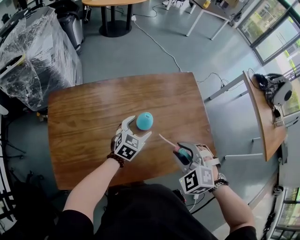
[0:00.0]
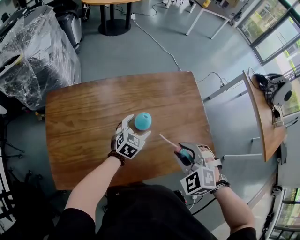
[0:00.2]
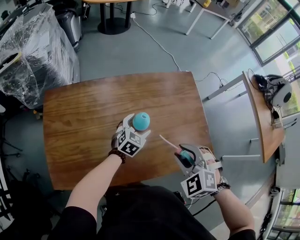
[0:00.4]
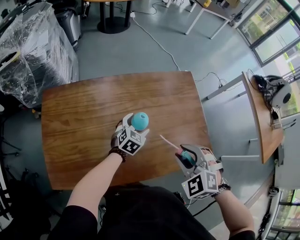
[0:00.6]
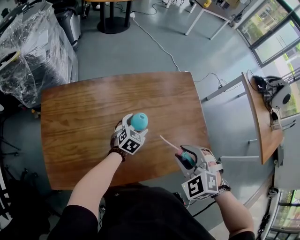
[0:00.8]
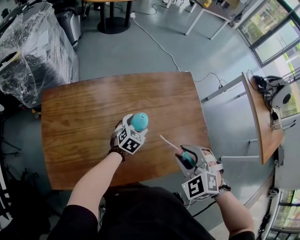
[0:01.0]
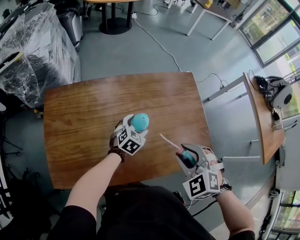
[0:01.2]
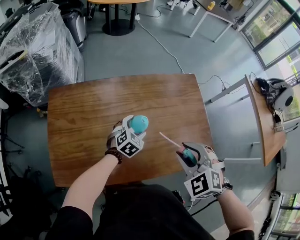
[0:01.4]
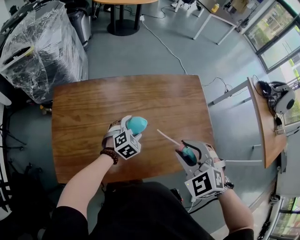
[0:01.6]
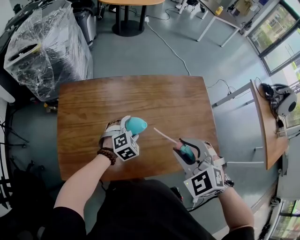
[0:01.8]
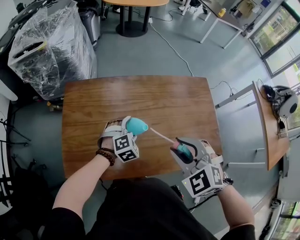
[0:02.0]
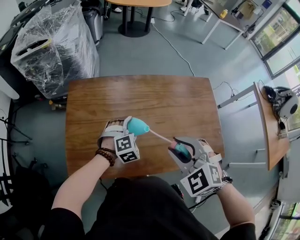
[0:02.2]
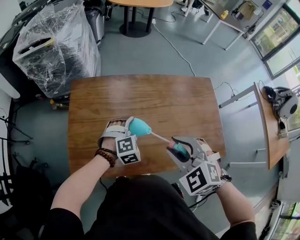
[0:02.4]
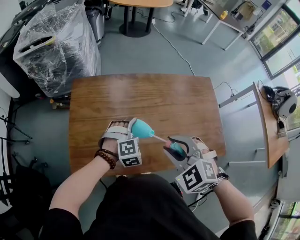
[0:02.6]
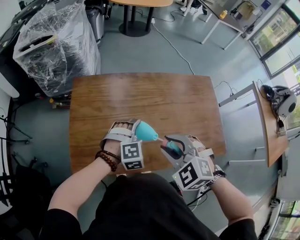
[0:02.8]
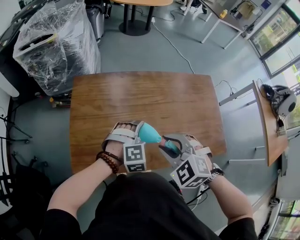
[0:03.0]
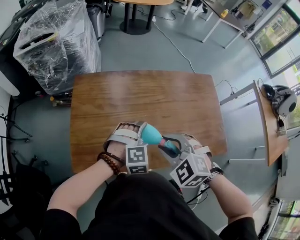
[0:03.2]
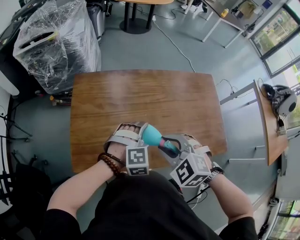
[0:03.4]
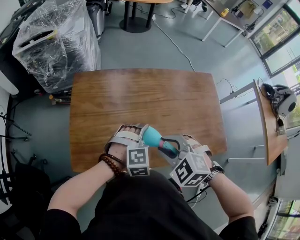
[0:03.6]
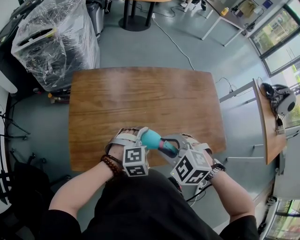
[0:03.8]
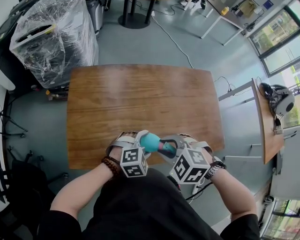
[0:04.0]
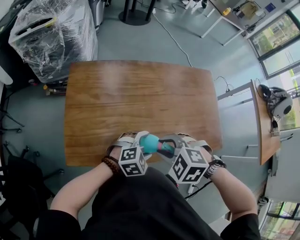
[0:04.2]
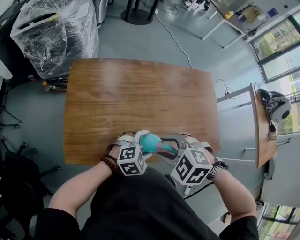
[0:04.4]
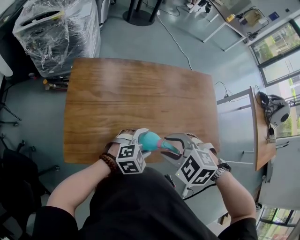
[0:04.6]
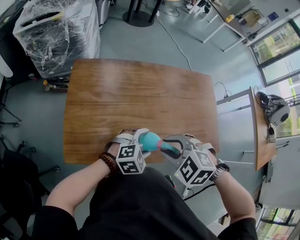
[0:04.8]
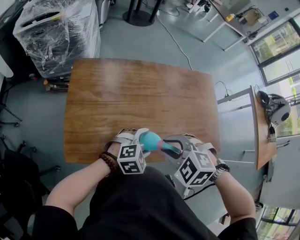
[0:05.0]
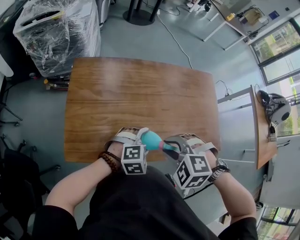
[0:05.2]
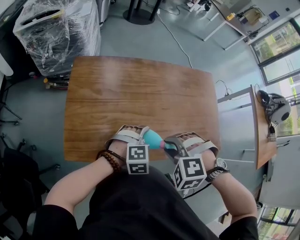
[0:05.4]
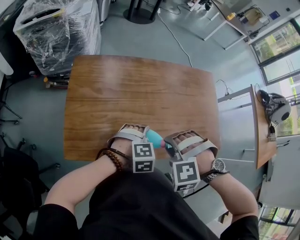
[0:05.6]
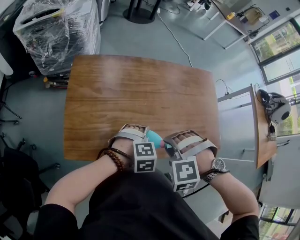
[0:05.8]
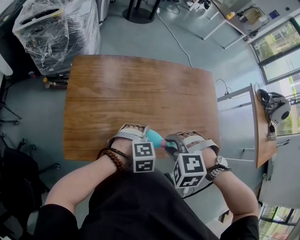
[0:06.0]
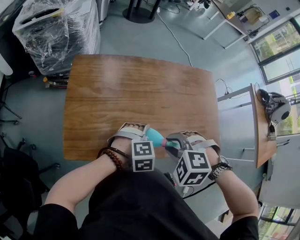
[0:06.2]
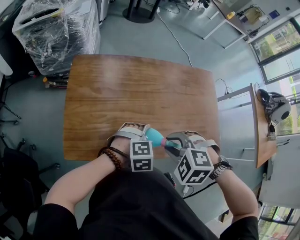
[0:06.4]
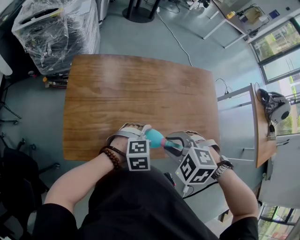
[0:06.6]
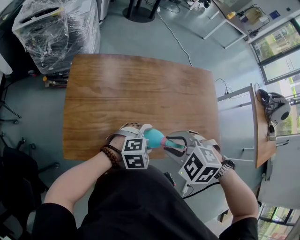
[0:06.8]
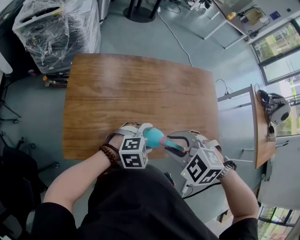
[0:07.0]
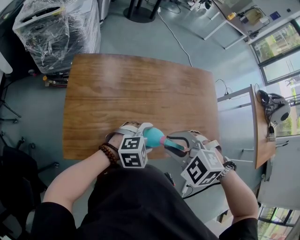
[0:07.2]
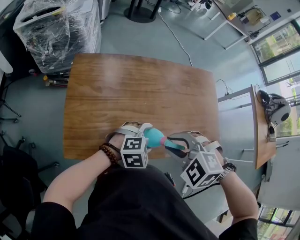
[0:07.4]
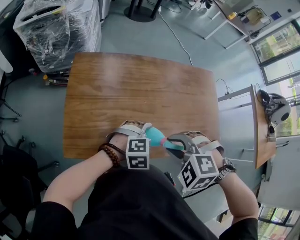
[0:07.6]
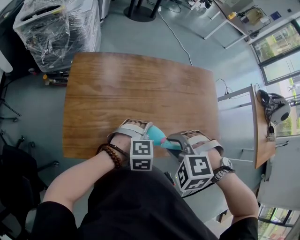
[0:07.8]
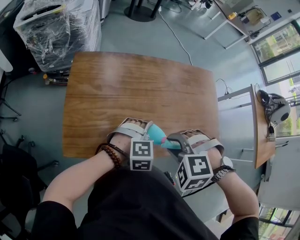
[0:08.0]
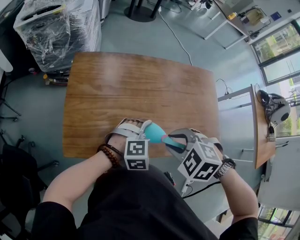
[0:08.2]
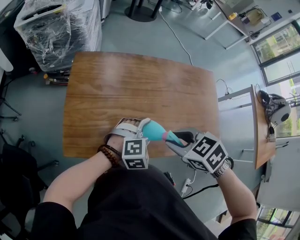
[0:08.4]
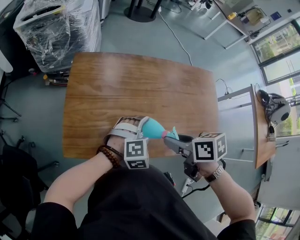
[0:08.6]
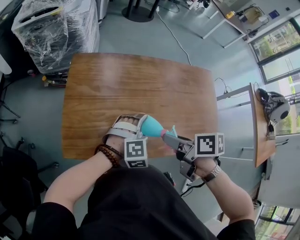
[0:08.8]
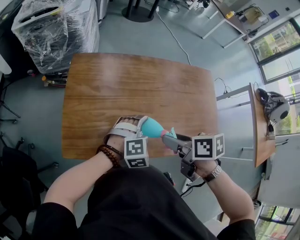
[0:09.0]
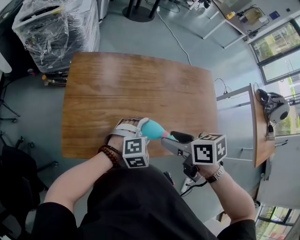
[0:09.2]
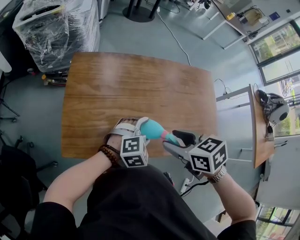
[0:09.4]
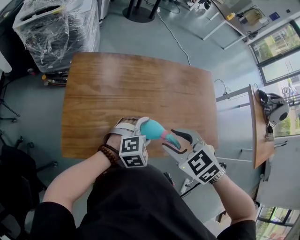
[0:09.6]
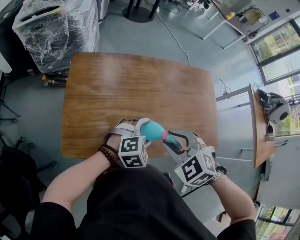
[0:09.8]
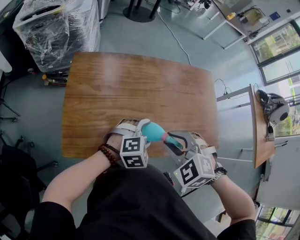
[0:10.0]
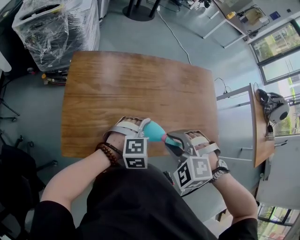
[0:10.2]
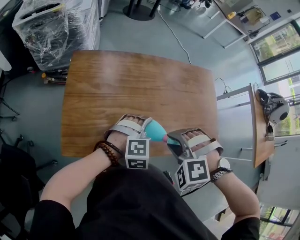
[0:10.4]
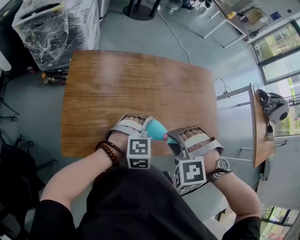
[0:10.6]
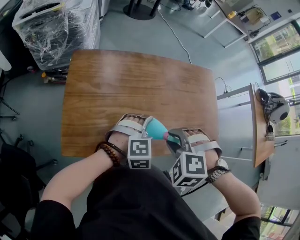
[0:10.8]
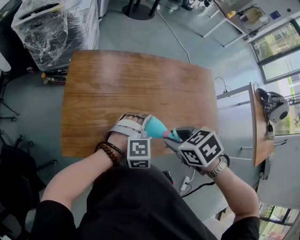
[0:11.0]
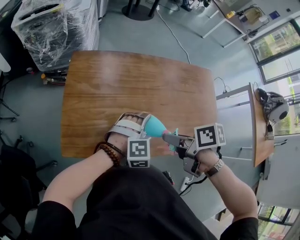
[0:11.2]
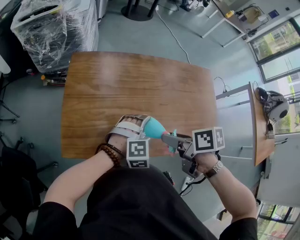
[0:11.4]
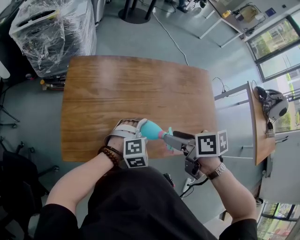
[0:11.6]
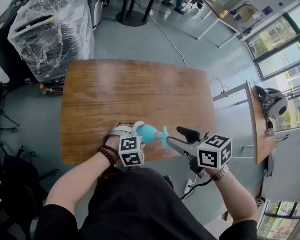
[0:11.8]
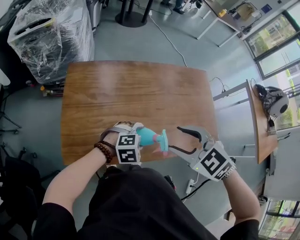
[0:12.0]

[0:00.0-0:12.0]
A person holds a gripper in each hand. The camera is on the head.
0.0 to 1.6 s: The right gripper goes approximately 5 cm upward. Meanwhile the left gripper shifts by approximately 5 cm, and turns by roughly 20 degrees.
1.6 to 3.0 s: The right gripper goes roughly 15 cm to the left, while the left gripper heads to the left, backward and upward, covering approximately 15 cm, and rotates approximately 30 degrees.
3.0 to 4.4 s: The left gripper heads backward, covering about 10 cm, and turns by roughly 30 degrees. The right gripper changes place by approximately 5 cm, and rotates roughly 20 degrees.
4.4 to 6.0 s: The right gripper rotates approximately 20 degrees; the left gripper changes its angle by approximately 30 degrees.
7.6 to 9.0 s: The right gripper rolls clockwise, seen from behind, by roughly 90 degrees.
9.0 to 10.4 s: The right gripper rotates around the line of its fingers by some 110 degrees, counterclockwise from behind.
10.4 to 12.0 s: The right gripper goes approximately 5 cm upward, twists about 40 degrees clockwise, seen from behind, and opens up.

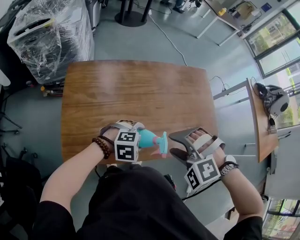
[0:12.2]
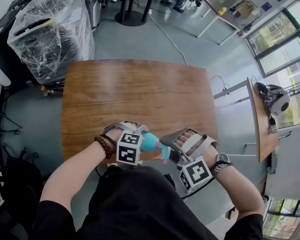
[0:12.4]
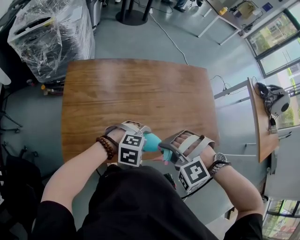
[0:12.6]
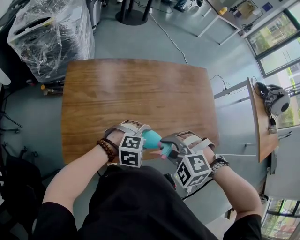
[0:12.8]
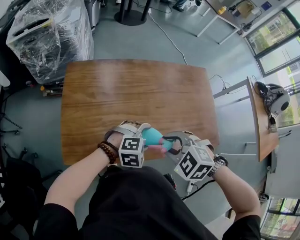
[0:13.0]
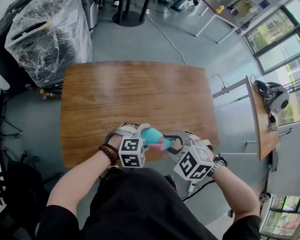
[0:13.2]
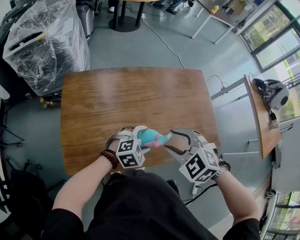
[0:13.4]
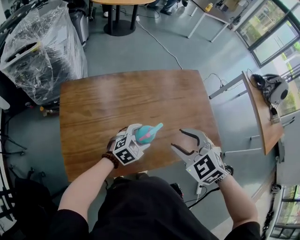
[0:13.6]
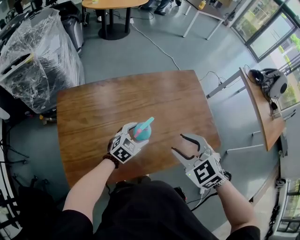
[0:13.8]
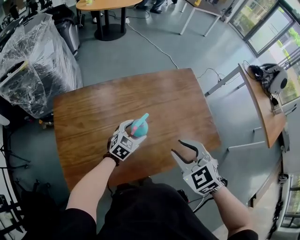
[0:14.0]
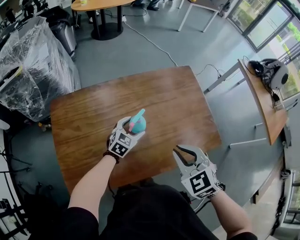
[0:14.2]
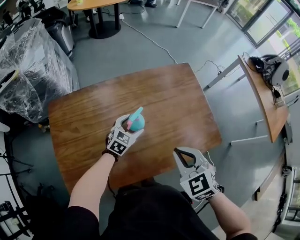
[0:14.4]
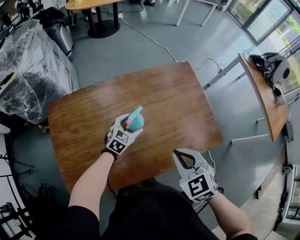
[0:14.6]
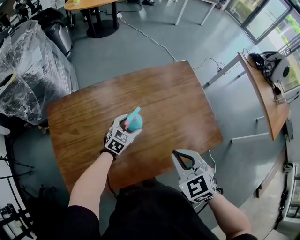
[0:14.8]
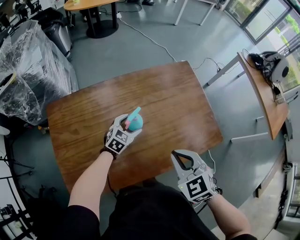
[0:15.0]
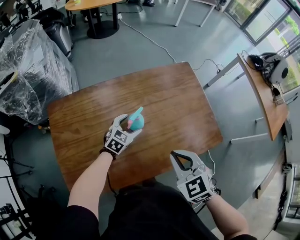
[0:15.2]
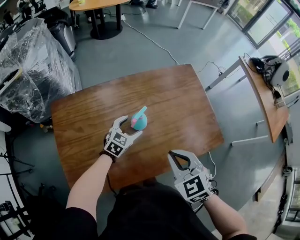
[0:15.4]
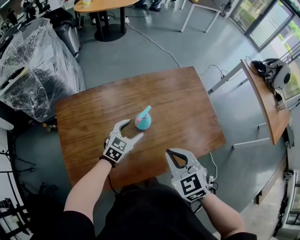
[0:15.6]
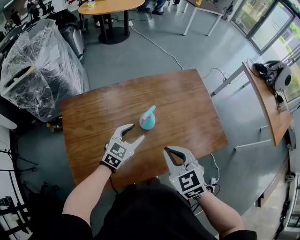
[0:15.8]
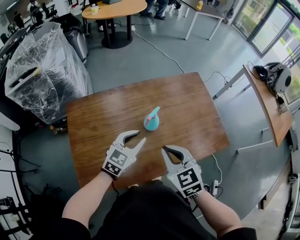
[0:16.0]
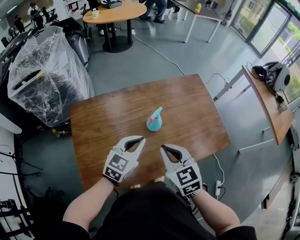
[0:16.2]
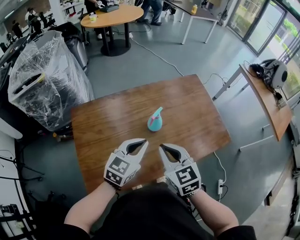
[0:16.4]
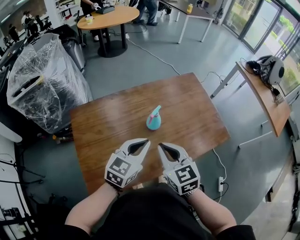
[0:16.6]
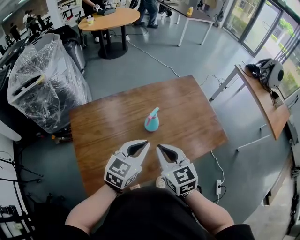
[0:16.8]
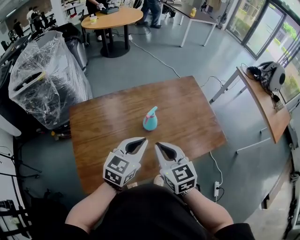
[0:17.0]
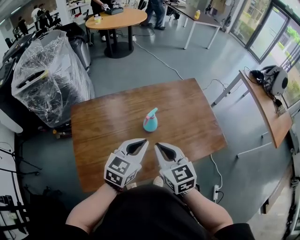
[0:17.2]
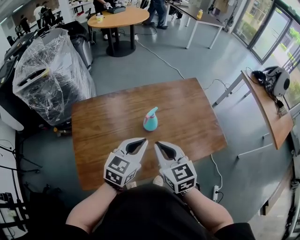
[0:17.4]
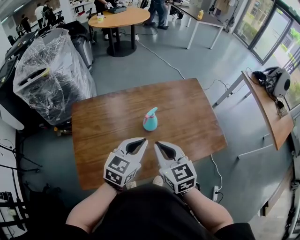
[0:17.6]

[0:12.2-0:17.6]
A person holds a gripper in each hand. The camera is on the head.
12.2 to 13.6 s: Both grippers move forward, some 10 cm. The right gripper rolls clockwise, seen from behind, by about 50 degrees, and closes and opens again. Meanwhile the left gripper changes its angle by about 30 degrees.
13.6 to 15.0 s: The right gripper moves to the right, approximately 5 cm, turns by approximately 20 degrees, and closes. Meanwhile the left gripper travels forward and downward by some 15 cm.
15.0 to 16.2 s: The left gripper moves upward and backward, some 20 cm, and closes its fingers. The right gripper shifts roughly 10 cm to the left.
16.2 to 17.6 s: The left gripper moves about 5 cm.

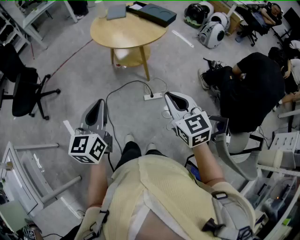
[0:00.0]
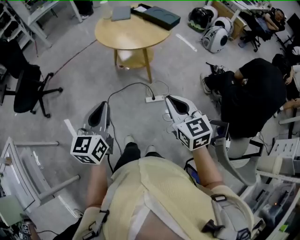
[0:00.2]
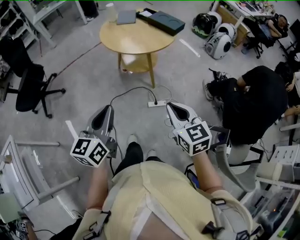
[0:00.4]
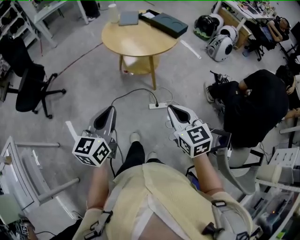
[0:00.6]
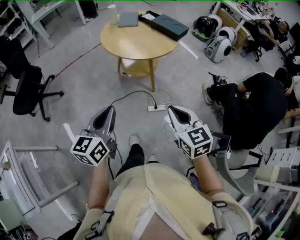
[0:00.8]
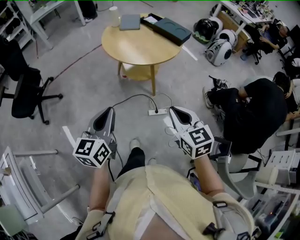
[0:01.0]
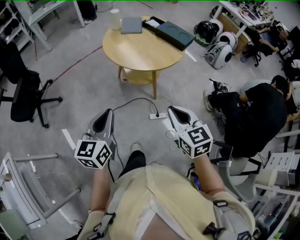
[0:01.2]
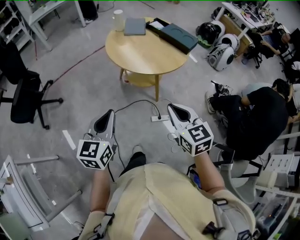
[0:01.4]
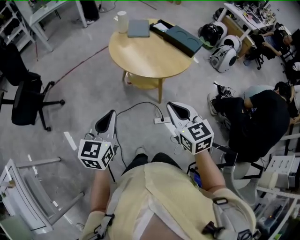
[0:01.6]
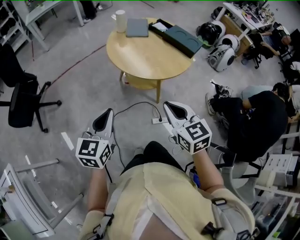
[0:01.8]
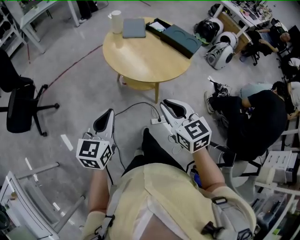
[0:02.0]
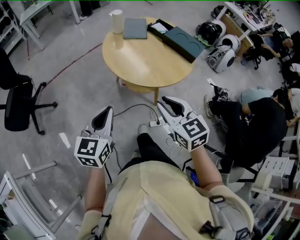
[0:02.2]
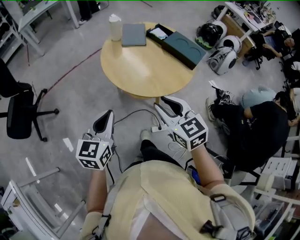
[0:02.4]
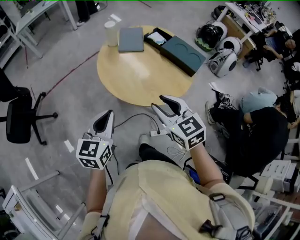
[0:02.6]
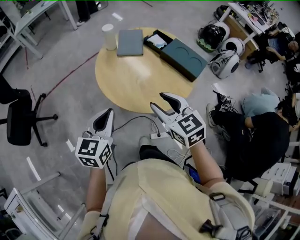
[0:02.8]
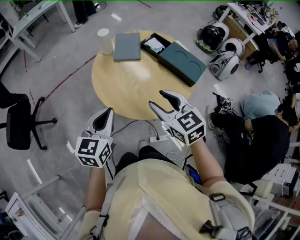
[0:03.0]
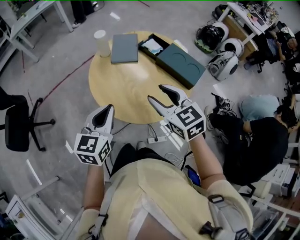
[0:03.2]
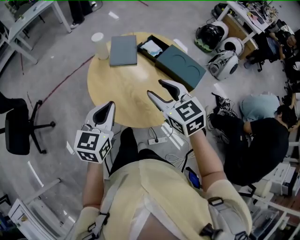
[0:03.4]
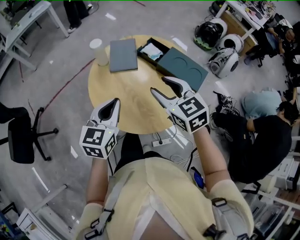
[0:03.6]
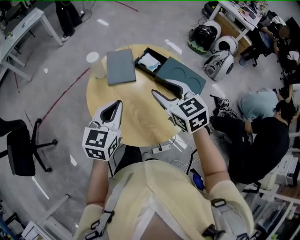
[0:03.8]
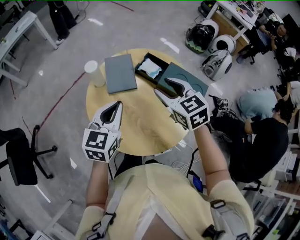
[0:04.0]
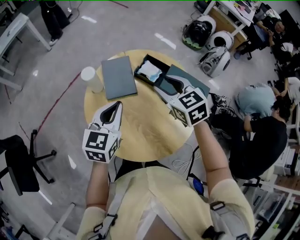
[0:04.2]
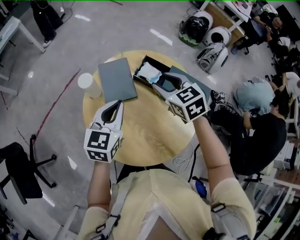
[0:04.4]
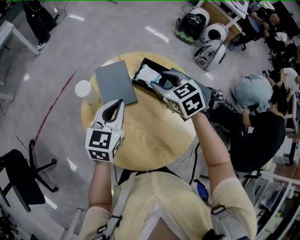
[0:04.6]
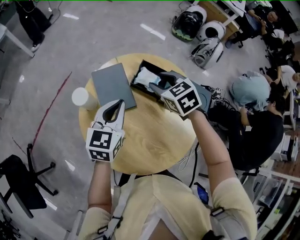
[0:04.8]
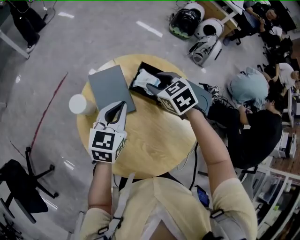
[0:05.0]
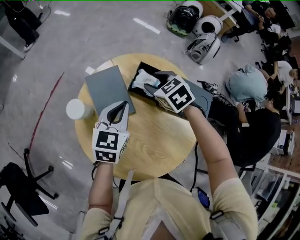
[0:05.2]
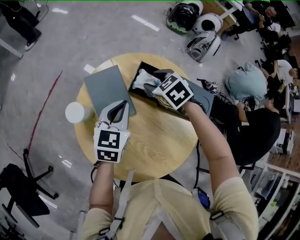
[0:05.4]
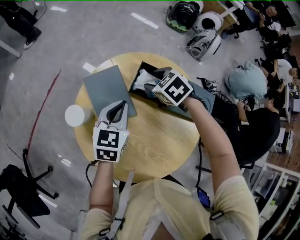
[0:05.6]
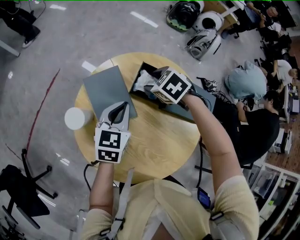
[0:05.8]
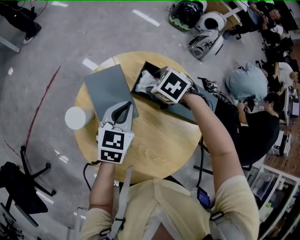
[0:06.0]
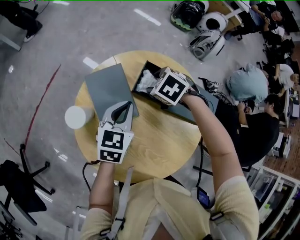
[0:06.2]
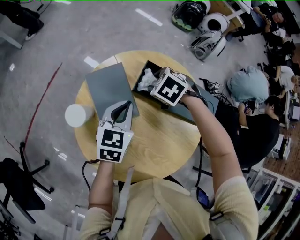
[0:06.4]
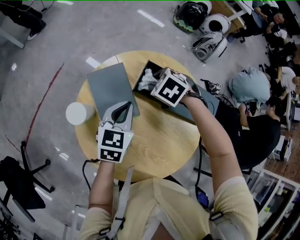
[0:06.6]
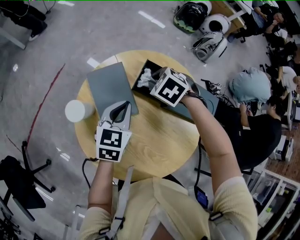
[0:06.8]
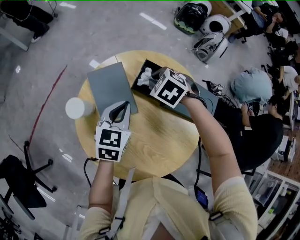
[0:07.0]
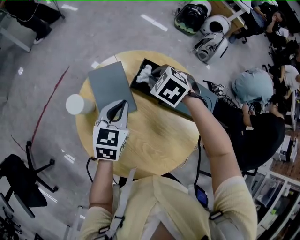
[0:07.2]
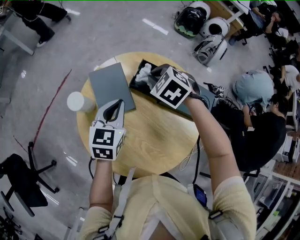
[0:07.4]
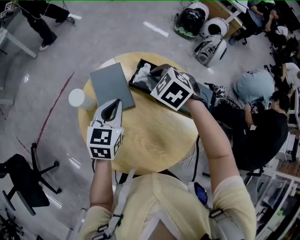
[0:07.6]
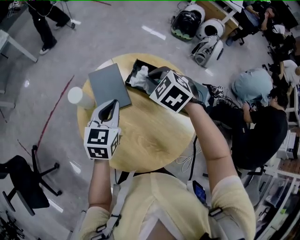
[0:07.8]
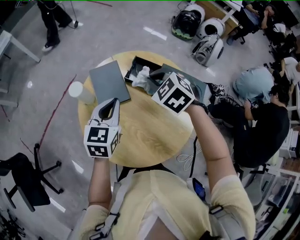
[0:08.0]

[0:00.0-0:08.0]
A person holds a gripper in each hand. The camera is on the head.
0.0 to 1.6 s: Both grippers move forward and to the left, some 20 cm.
1.6 to 3.2 s: Both grippers travel together forward, roughly 30 cm. The right gripper opens its fingers.
3.2 to 4.8 s: The grippers both shift forward by some 30 cm. The right gripper turns by about 30 degrees; the left gripper rotates roughly 20 degrees.
4.8 to 6.4 s: The two grippers go roughly 10 cm downward. The right gripper angles its fingers downward, by roughly 30 degrees.
6.4 to 8.0 s: The right gripper travels upward by some 15 cm, rotates roughly 30 degrees, and closes its fingers, while the left gripper moves upward, approximately 10 cm.
